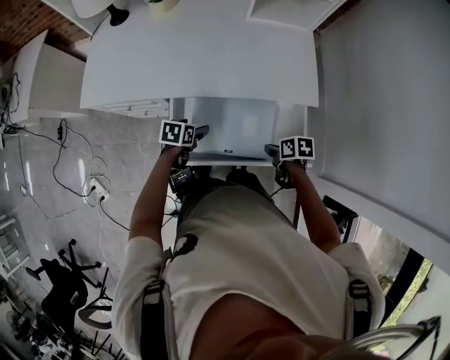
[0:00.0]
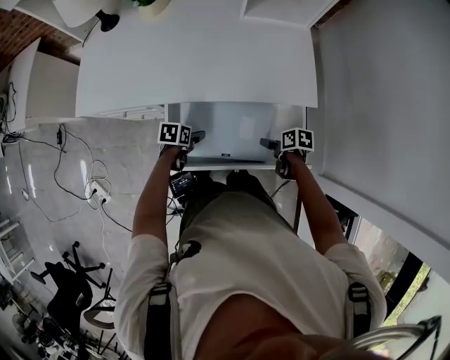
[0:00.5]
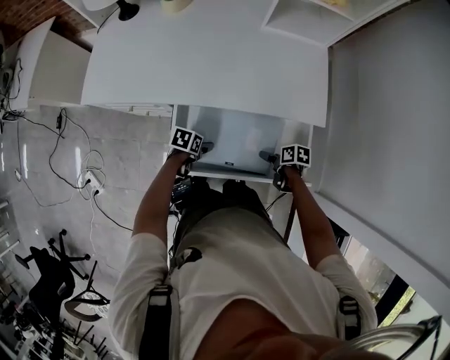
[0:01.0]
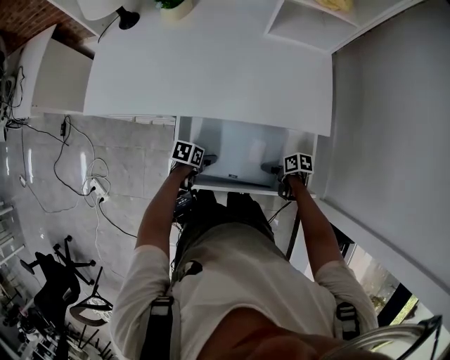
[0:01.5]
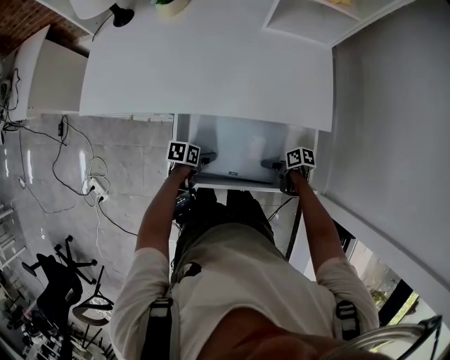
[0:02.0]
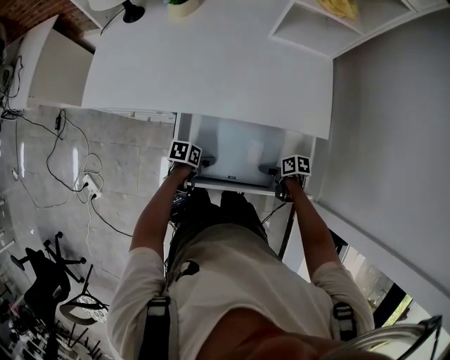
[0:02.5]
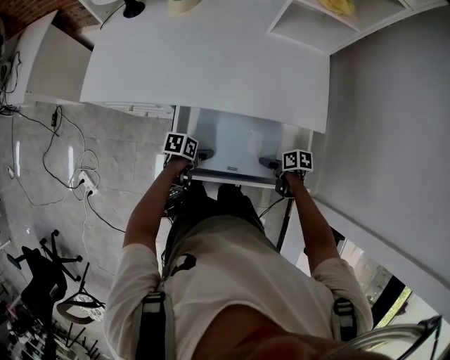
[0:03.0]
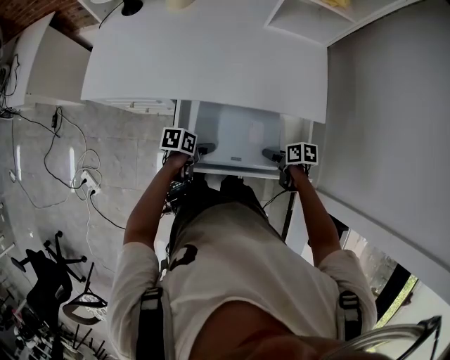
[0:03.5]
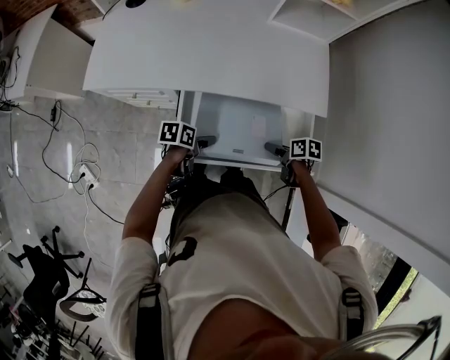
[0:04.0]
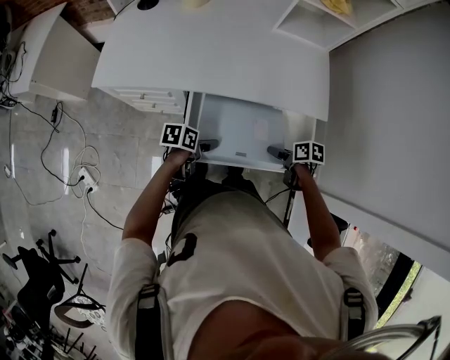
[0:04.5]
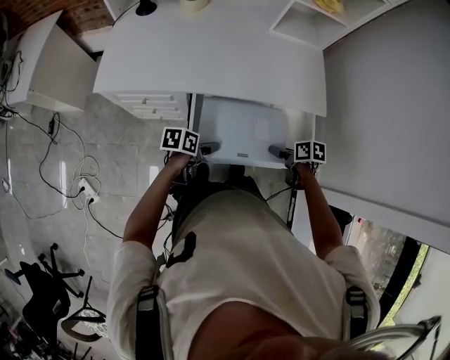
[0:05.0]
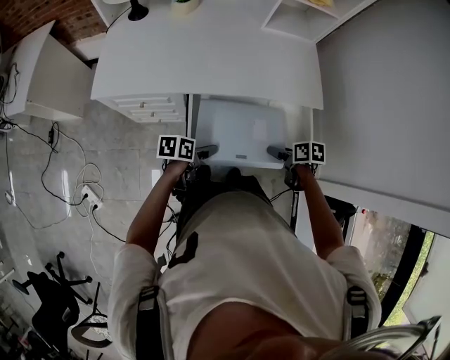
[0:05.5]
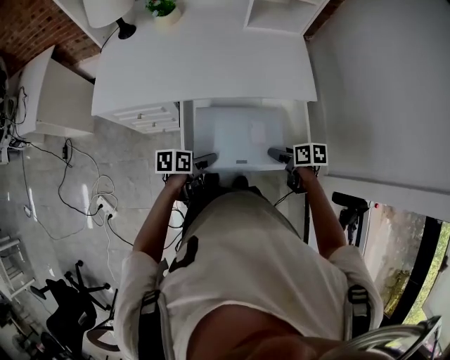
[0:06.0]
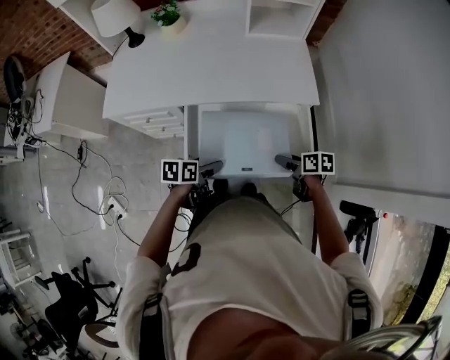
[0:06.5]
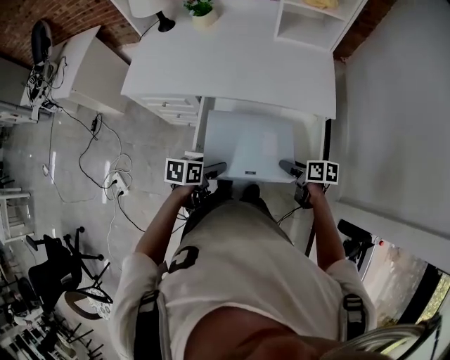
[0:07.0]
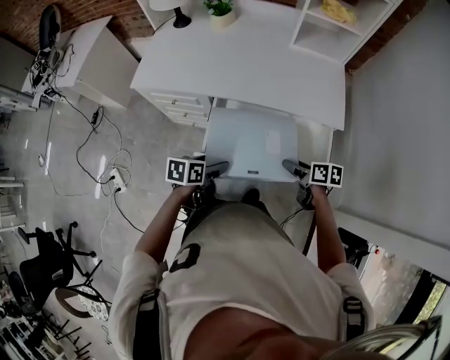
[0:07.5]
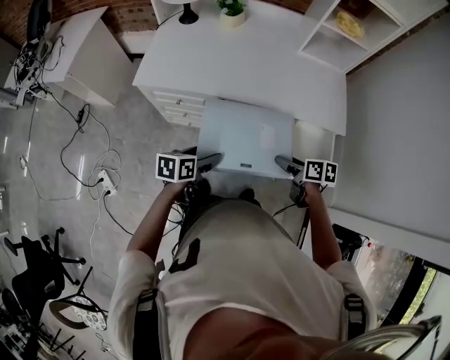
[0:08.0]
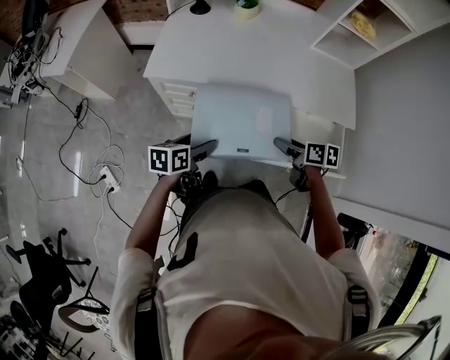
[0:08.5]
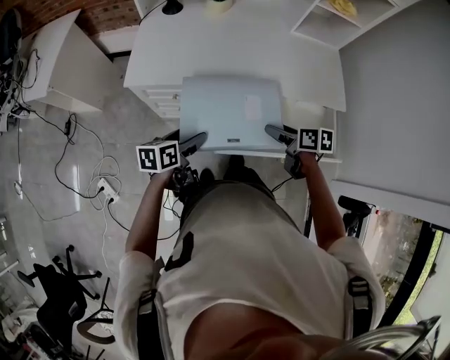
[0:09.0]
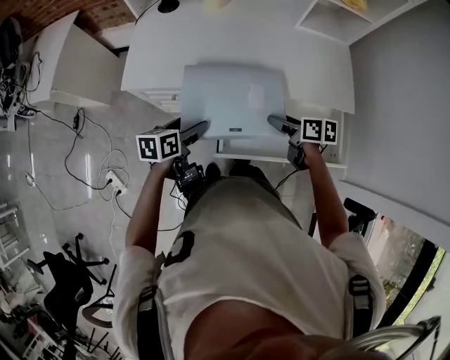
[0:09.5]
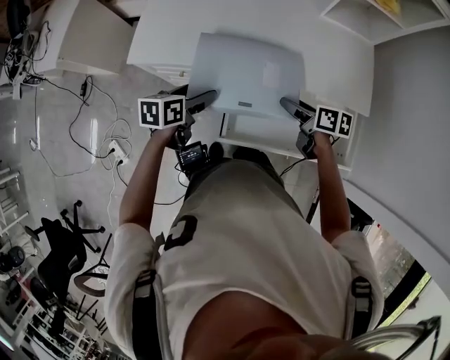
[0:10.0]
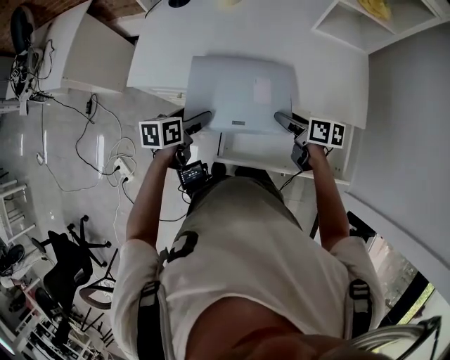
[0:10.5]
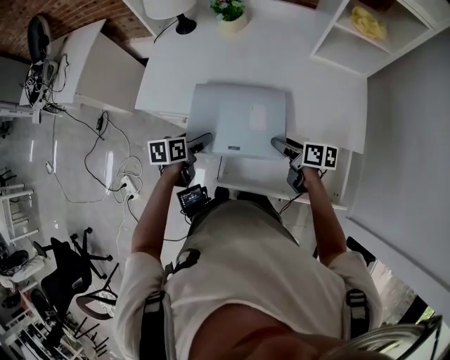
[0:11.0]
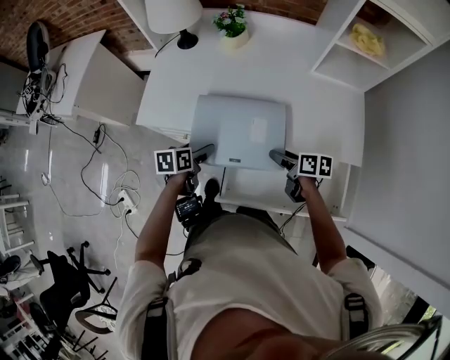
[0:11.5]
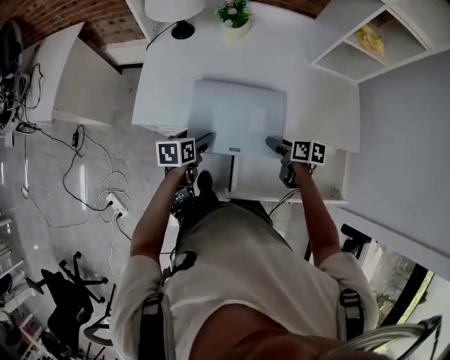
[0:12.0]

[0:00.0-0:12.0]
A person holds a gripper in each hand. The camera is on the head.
0:00.0 to 0:02.0: Both grippers move downward, roughly 10 cm. The right gripper opens.
0:02.0 to 0:04.0: The grippers both shift upward by about 10 cm.
0:04.0 to 0:06.0: The two grippers go about 5 cm upward.
0:06.0 to 0:08.0: Both grippers move to the left and upward, about 15 cm.
0:08.0 to 0:10.0: The grippers both shift forward by some 15 cm.
0:10.0 to 0:12.0: The right gripper is displaced forward by roughly 5 cm. The left gripper is displaced forward, downward and to the left by some 10 cm.

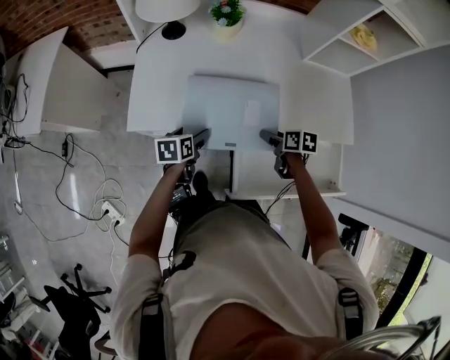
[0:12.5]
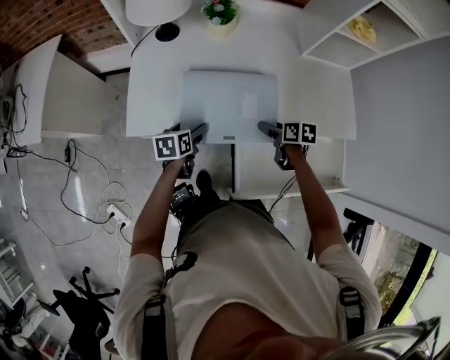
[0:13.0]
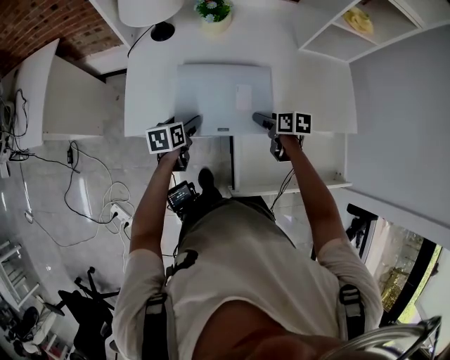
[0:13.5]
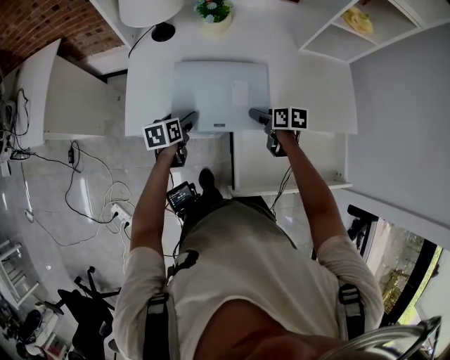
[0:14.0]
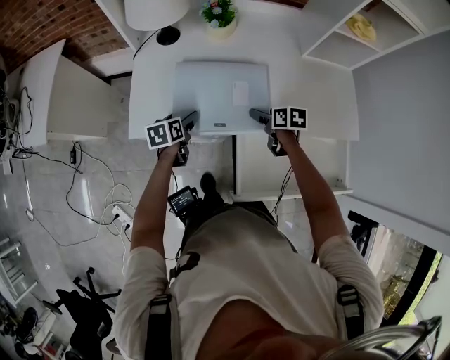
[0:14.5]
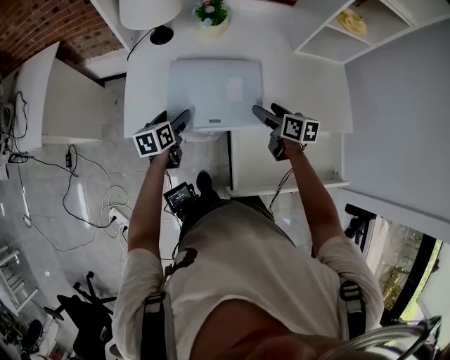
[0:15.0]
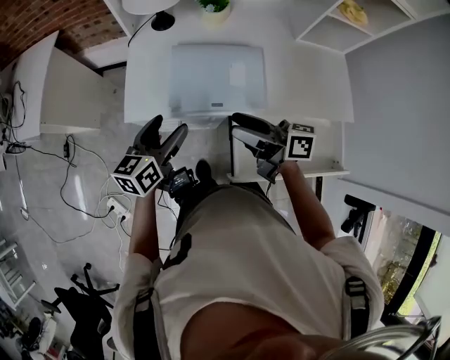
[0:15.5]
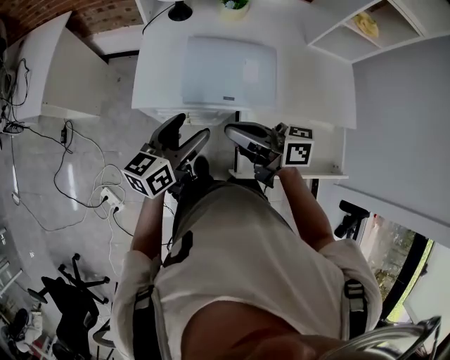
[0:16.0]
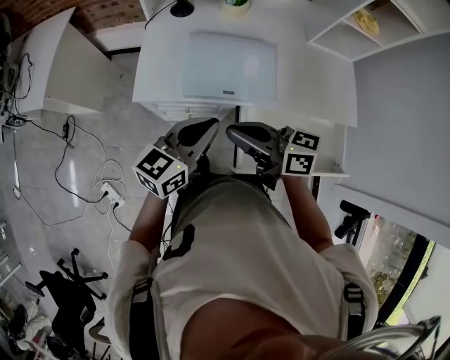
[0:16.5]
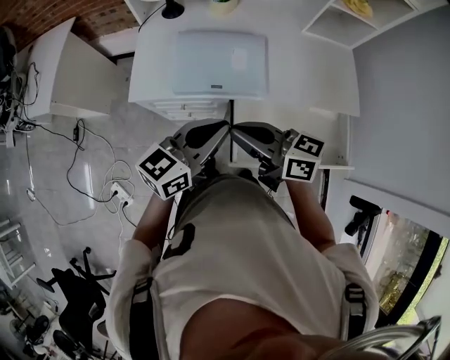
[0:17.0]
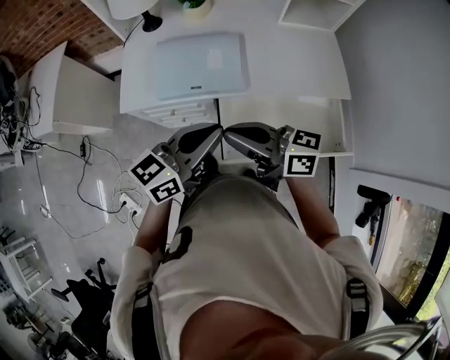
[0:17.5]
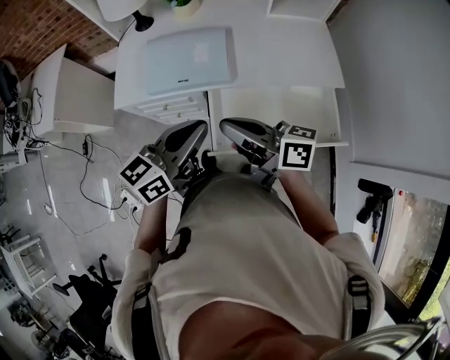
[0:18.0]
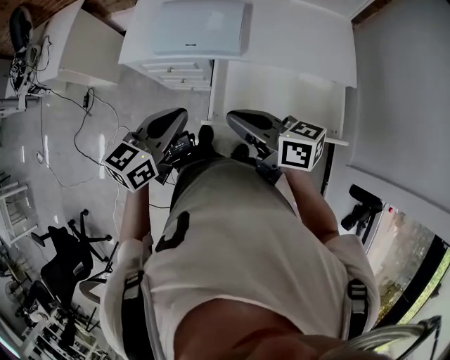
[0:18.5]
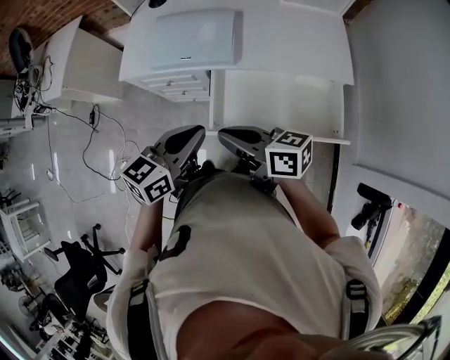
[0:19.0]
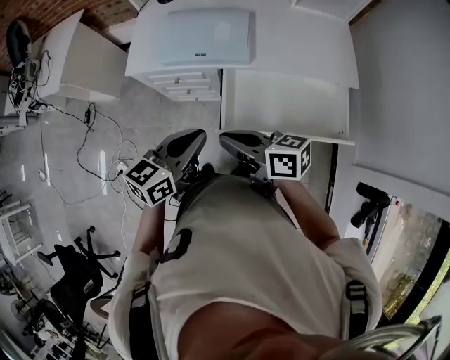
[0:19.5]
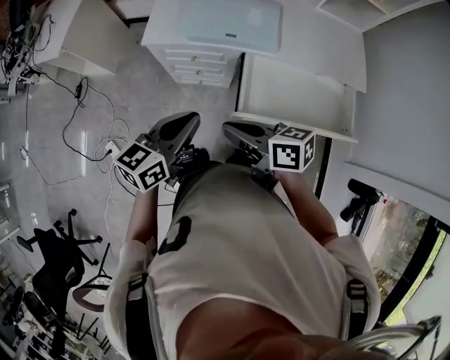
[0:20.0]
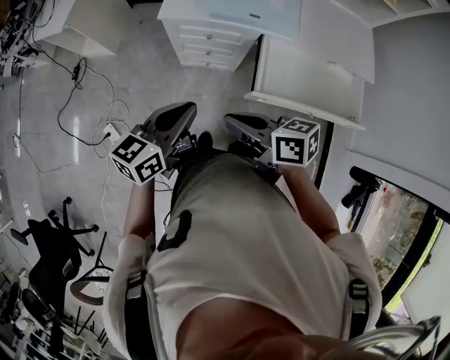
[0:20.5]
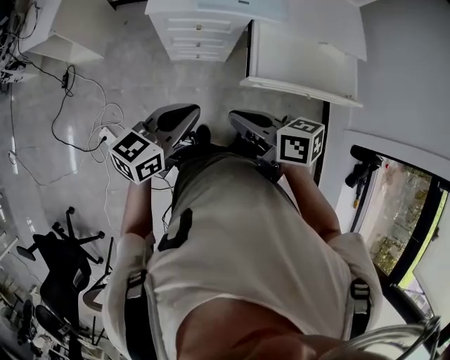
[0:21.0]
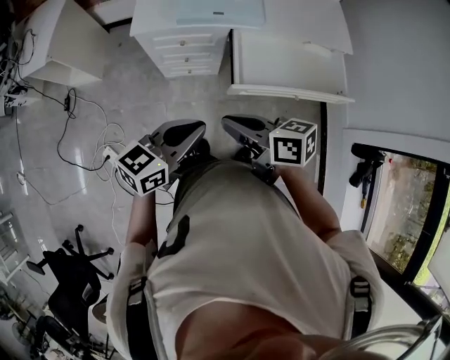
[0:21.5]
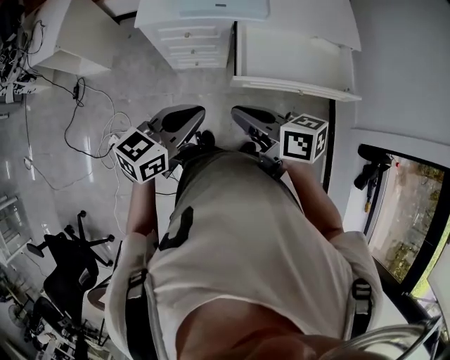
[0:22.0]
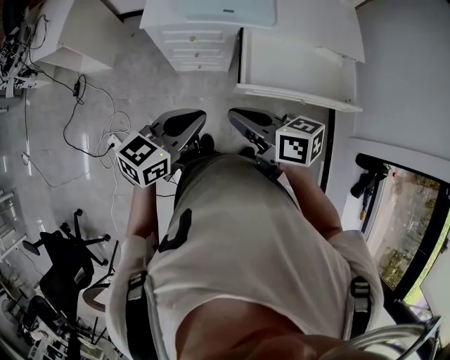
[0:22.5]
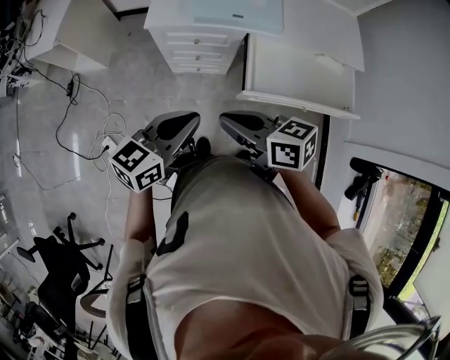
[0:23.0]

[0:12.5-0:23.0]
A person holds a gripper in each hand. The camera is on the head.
0:12.5 to 0:14.5: Both grippers travel together forward, some 10 cm.
0:14.5 to 0:16.5: The right gripper moves upward, to the left and backward, approximately 35 cm, points its fingers roughly 40 degrees further upward, and closes its fingers, while the left gripper shifts roughly 30 cm upward and backward, tips its fingers upward by roughly 40 degrees, and closes its fingers.
0:16.5 to 0:19.0: Both grippers travel together backward and to the right, approximately 25 cm.
0:19.0 to 0:21.0: The grippers both shift to the left by approximately 25 cm.
0:21.0 to 0:23.0: The right gripper goes to the right and returns, roughly 10 cm each way. Meanwhile the left gripper moves some 10 cm to the right and comes back.

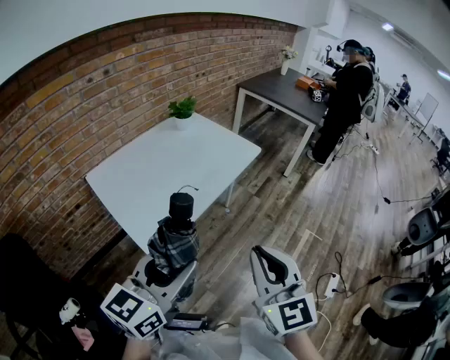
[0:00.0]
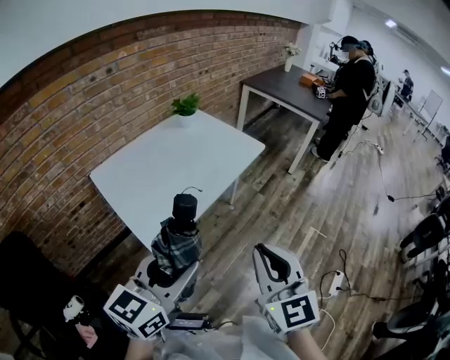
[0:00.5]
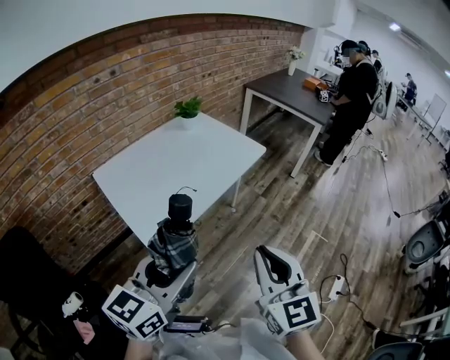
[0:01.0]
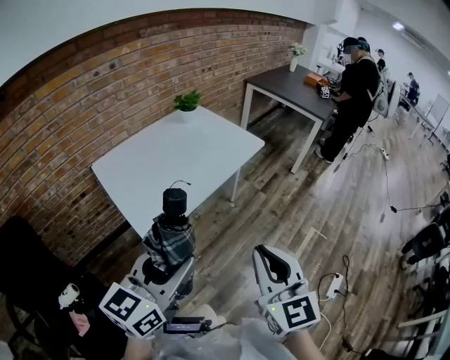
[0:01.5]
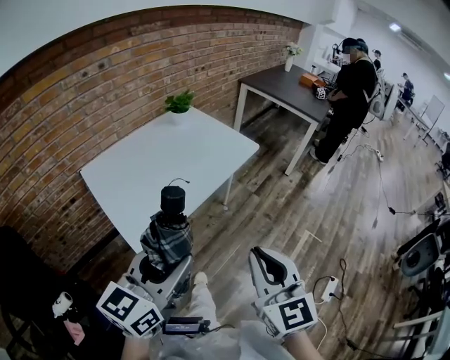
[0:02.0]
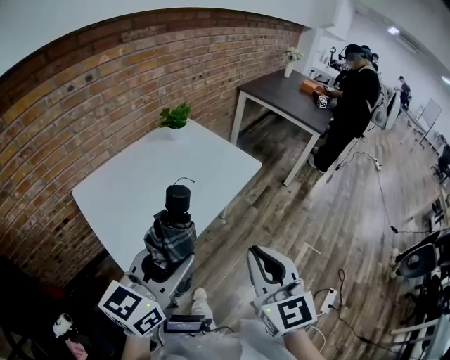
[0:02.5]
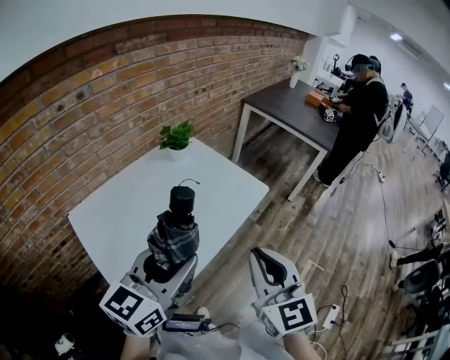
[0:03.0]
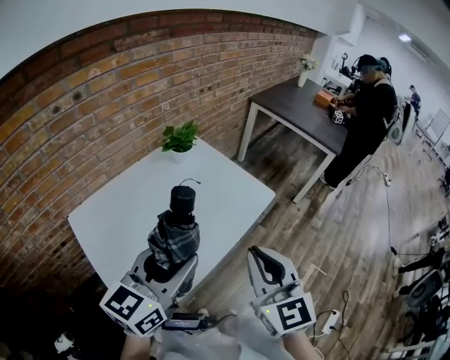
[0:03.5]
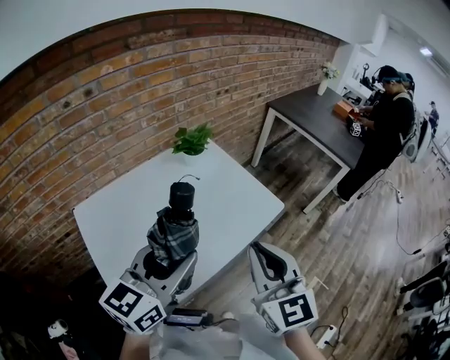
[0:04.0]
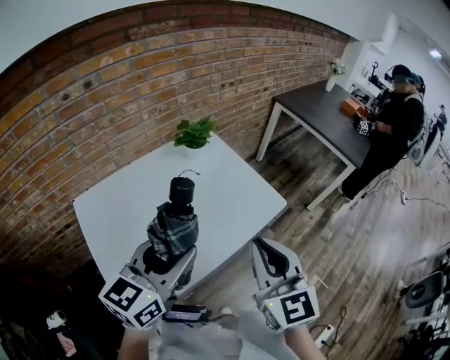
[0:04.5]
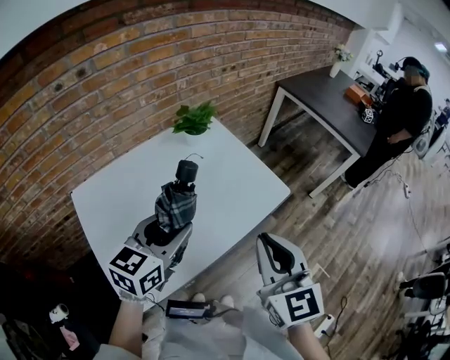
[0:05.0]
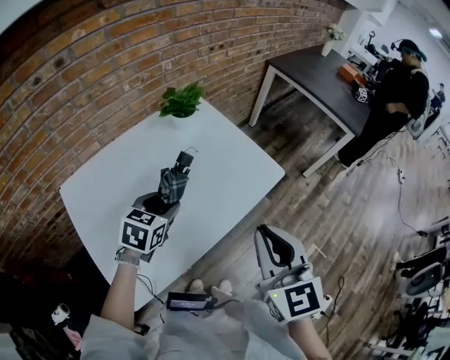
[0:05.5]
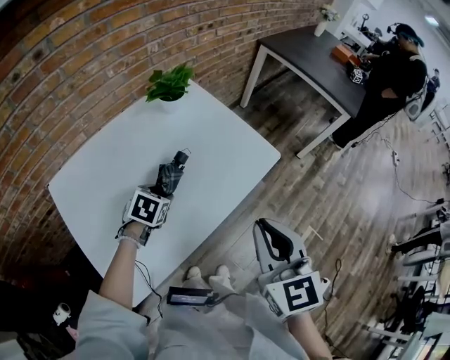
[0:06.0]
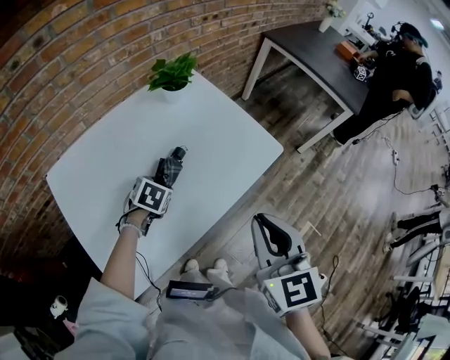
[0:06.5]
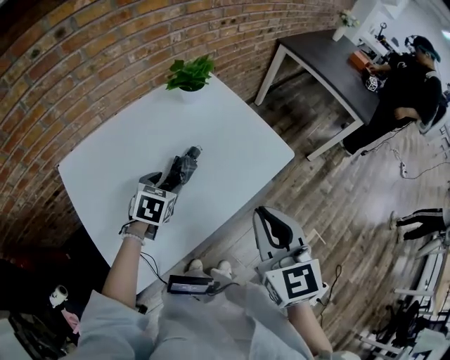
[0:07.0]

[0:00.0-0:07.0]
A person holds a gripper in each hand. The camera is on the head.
0:00.0 to 0:02.0: The right gripper moves roughly 5 cm, while the left gripper shifts by some 5 cm.
0:02.0 to 0:03.5: Both grippers travel together forward, roughly 30 cm.
0:03.5 to 0:05.0: The right gripper heads forward, covering roughly 5 cm. The left gripper heads forward and downward, covering about 10 cm.
0:05.0 to 0:07.0: The right gripper moves downward, about 5 cm. The left gripper goes approximately 20 cm downward, and angles its fingers downward, by approximately 30 degrees.
